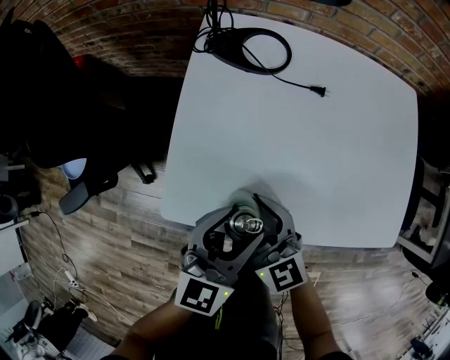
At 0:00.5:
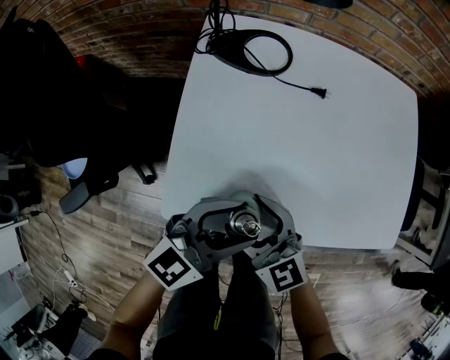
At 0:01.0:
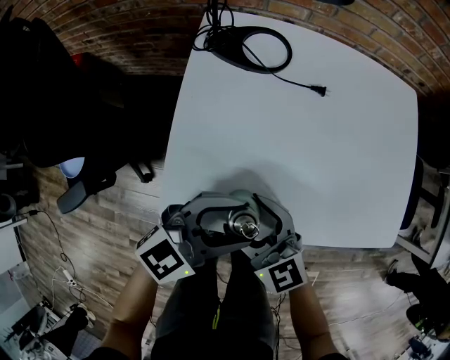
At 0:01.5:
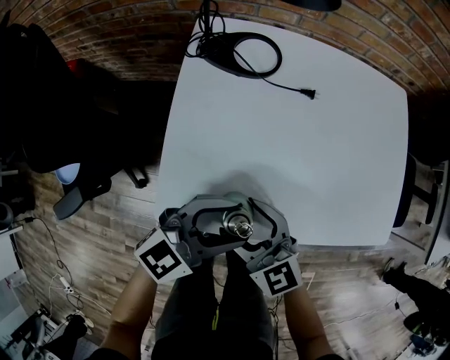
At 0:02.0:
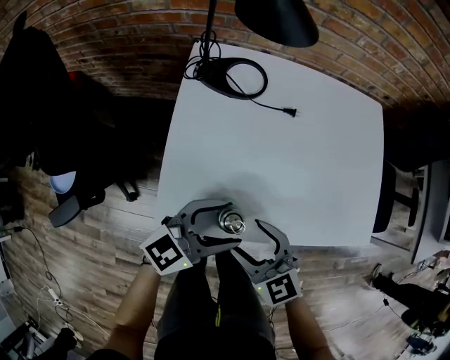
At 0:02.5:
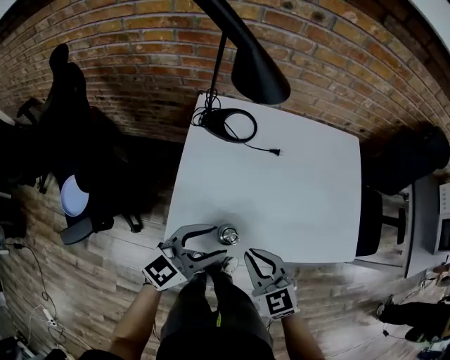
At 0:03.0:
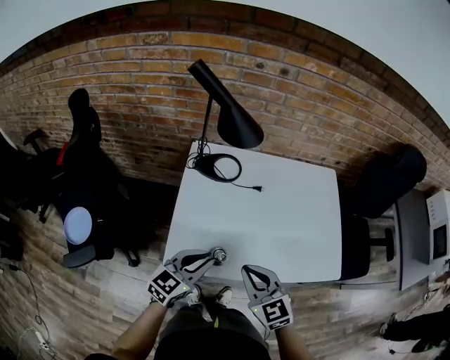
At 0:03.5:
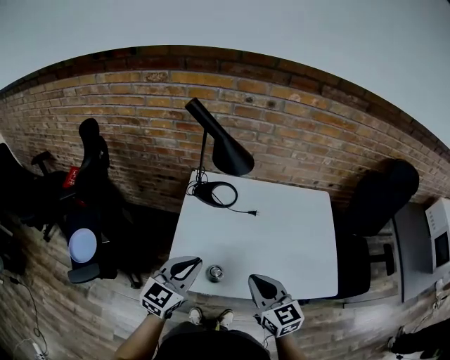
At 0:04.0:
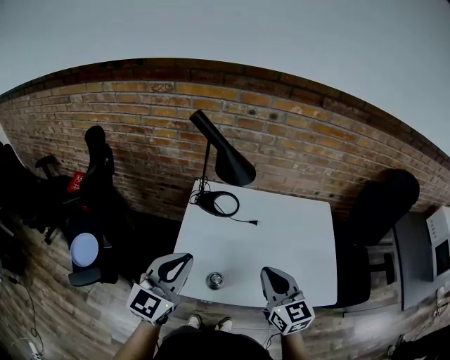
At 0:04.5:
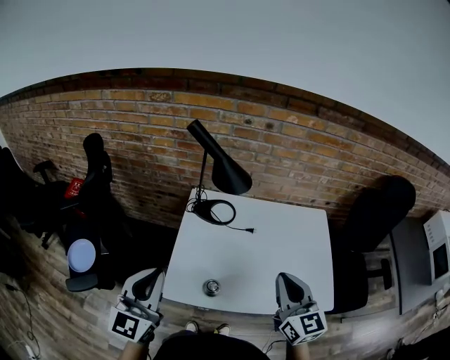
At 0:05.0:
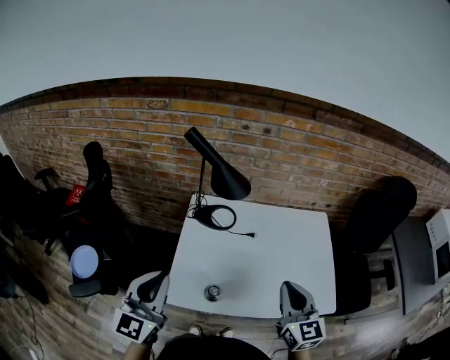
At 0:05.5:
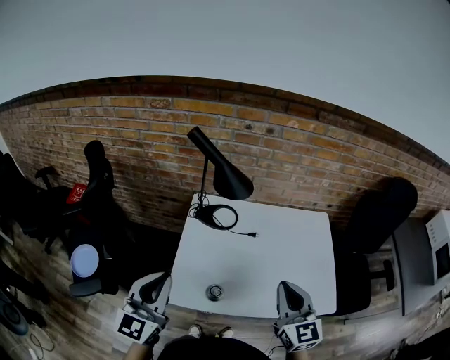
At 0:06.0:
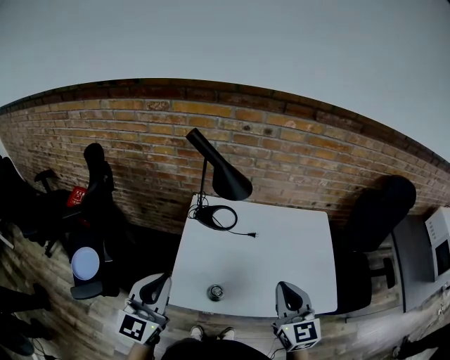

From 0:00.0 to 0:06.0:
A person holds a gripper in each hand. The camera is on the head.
From 0:00.0 to 0:02.0: The left gripper turns by about 40 degrees, while the right gripper shifts by about 5 cm.
From 0:02.0 to 0:04.0: The left gripper shifts about 25 cm upward and to the left, changes its angle by approximately 40 degrees, and closes its fingers, while the right gripper goes roughly 25 cm upward and to the right, turns by roughly 30 degrees, and closes up.
From 0:04.0 to 0:06.0: The right gripper moves about 5 cm. The left gripper ends up approximately 5 cm from where it was.

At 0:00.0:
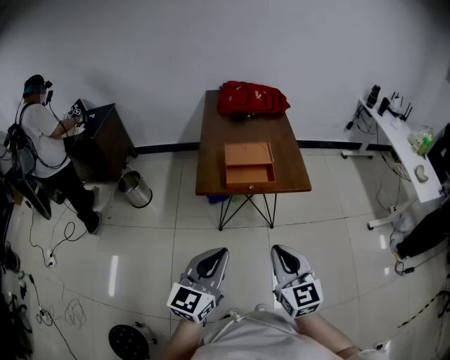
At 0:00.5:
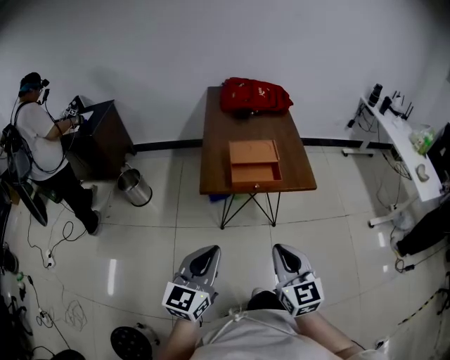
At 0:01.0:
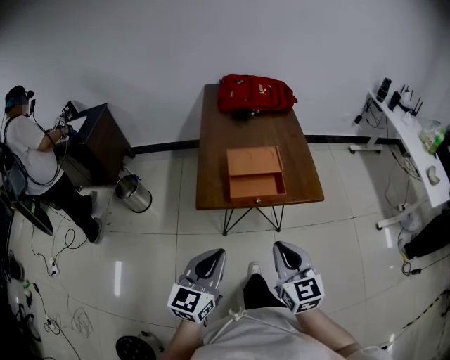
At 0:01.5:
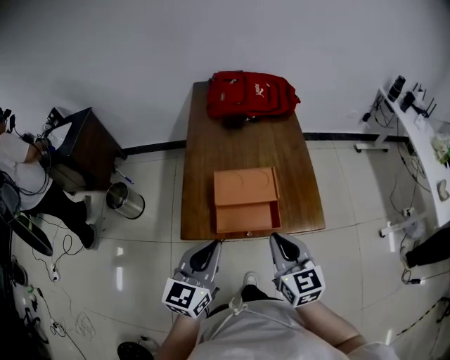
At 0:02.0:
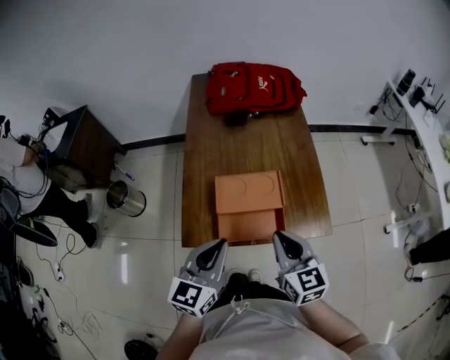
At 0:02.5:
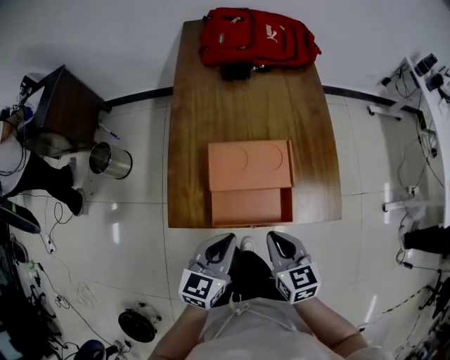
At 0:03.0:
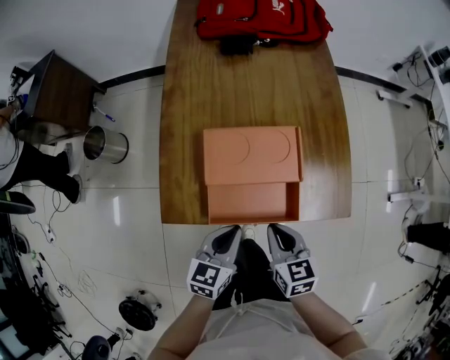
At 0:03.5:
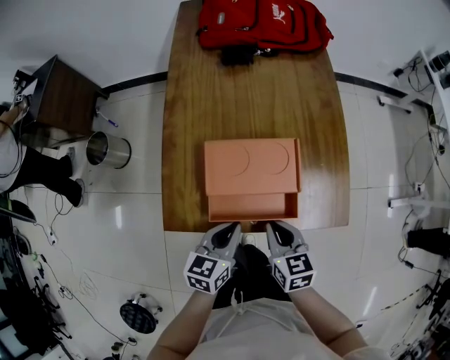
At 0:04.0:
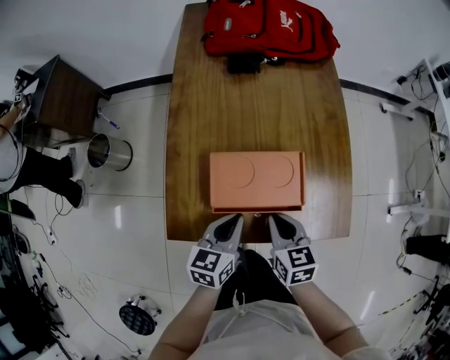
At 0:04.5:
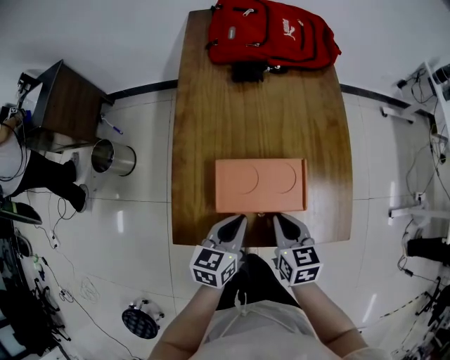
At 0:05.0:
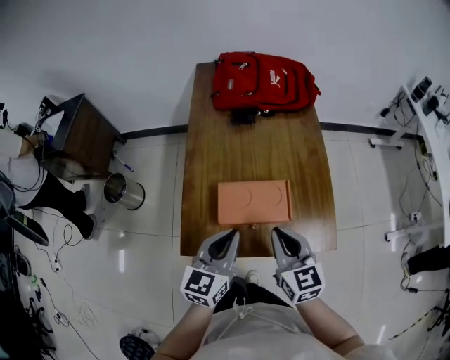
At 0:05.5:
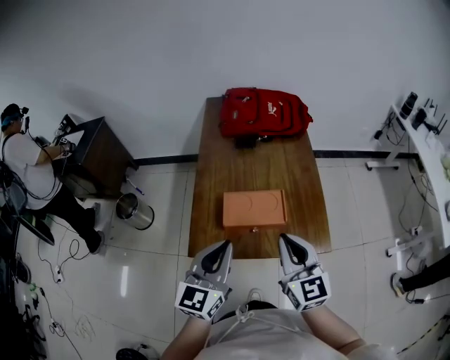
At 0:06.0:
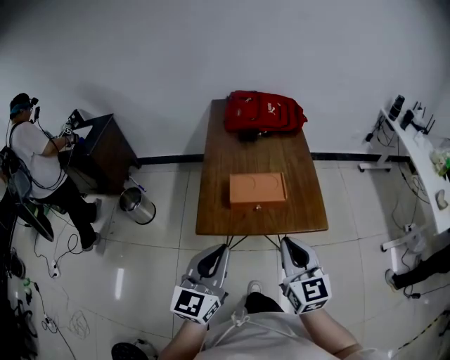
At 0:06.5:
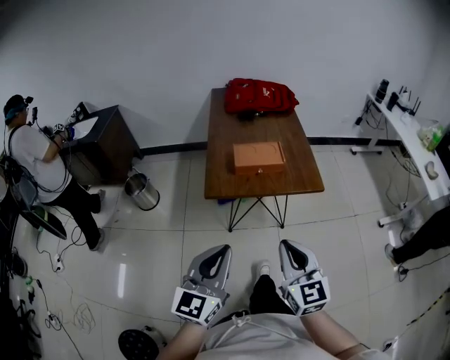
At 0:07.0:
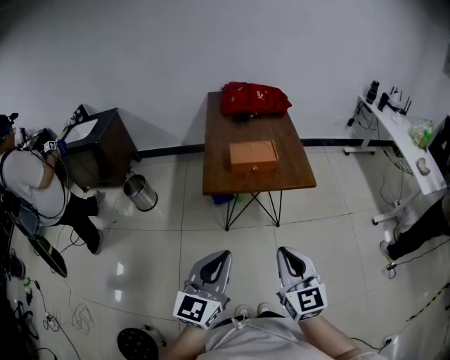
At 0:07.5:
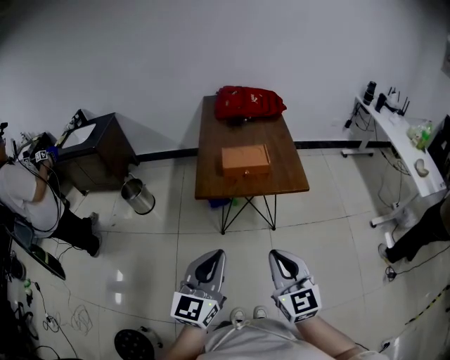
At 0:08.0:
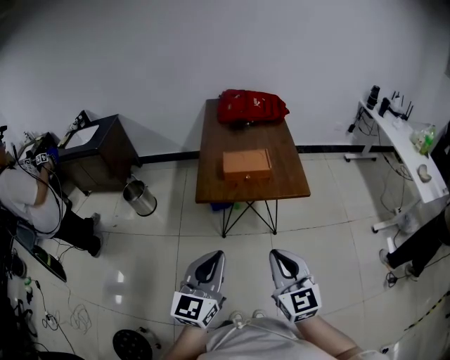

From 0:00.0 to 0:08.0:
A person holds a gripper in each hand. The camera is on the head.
From 0:00.0 to 0:02.0: The two grippers go approximately 35 cm forward.
From 0:02.0 to 0:04.0: Both grippers move downward and forward, roughly 20 cm. The right gripper turns by about 20 degrees. Meanwhile the left gripper swivels approximately 30 degrees.
From 0:04.0 to 0:06.0: Both grippers travel together upward and backward, roughly 35 cm. The left gripper swivels some 40 degrees; the right gripper points its fingers approximately 30 degrees further upward.
From 0:06.0 to 0:08.0: Both grippers move backward, about 25 cm.

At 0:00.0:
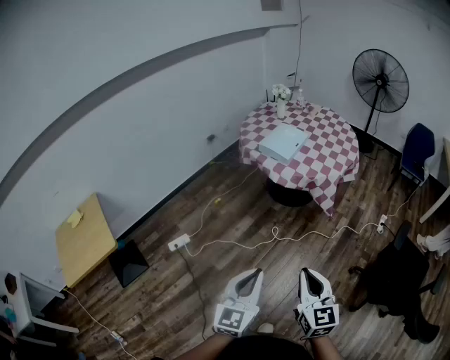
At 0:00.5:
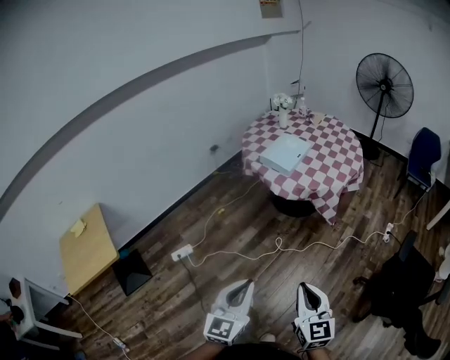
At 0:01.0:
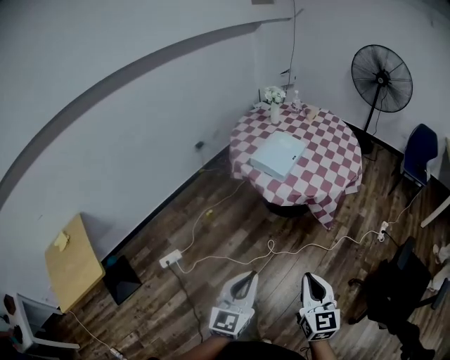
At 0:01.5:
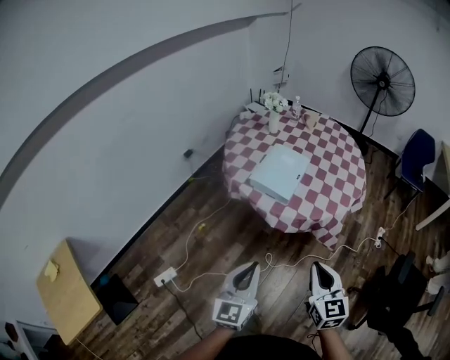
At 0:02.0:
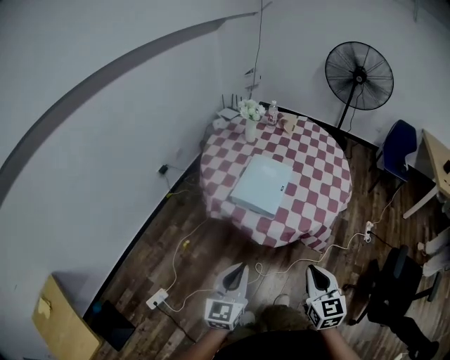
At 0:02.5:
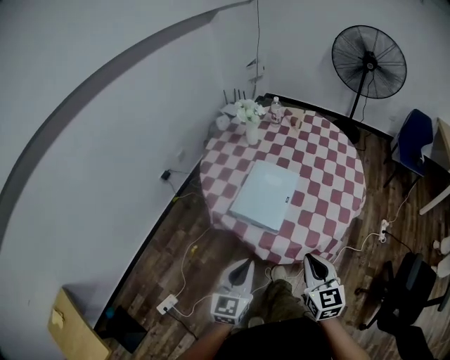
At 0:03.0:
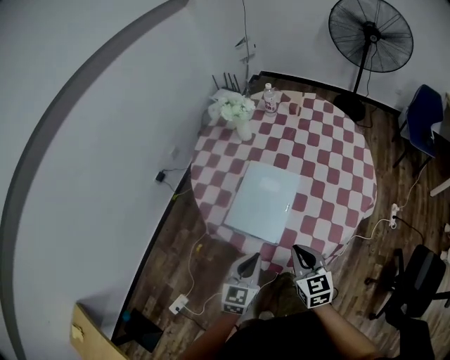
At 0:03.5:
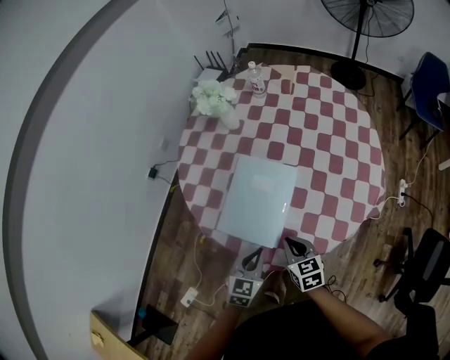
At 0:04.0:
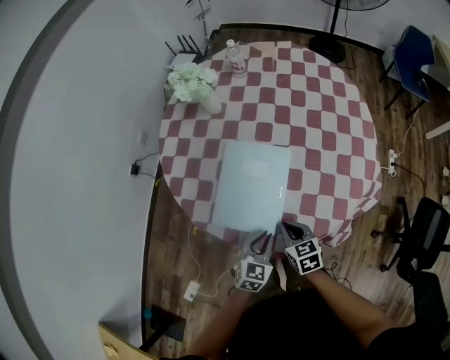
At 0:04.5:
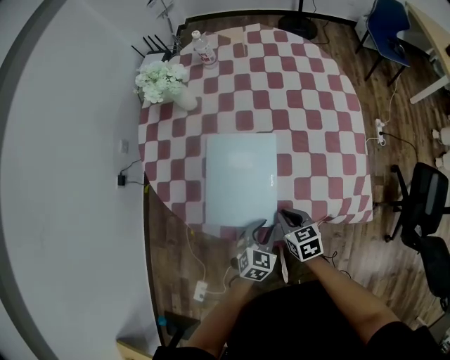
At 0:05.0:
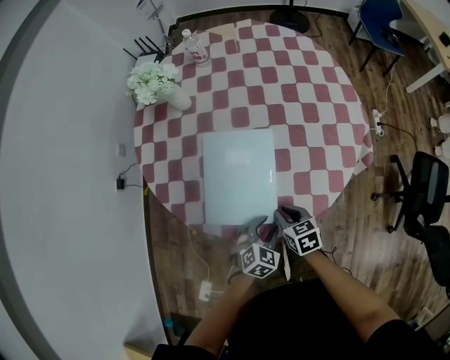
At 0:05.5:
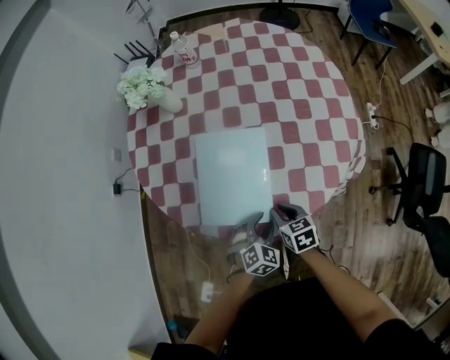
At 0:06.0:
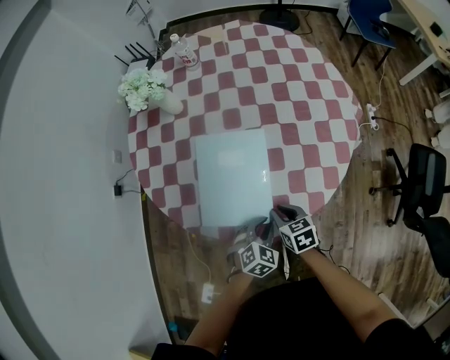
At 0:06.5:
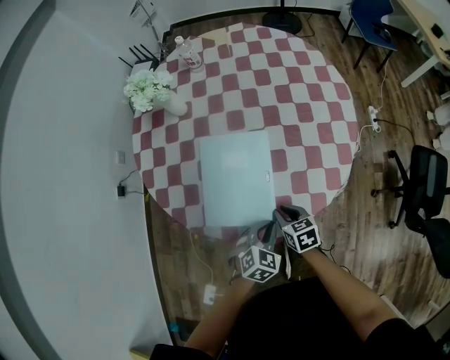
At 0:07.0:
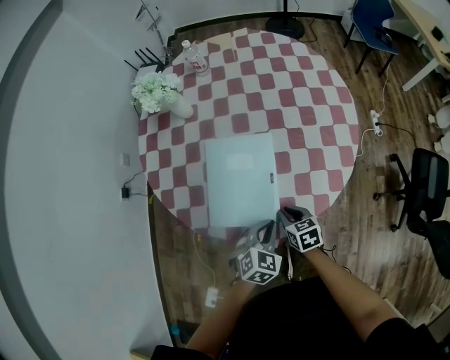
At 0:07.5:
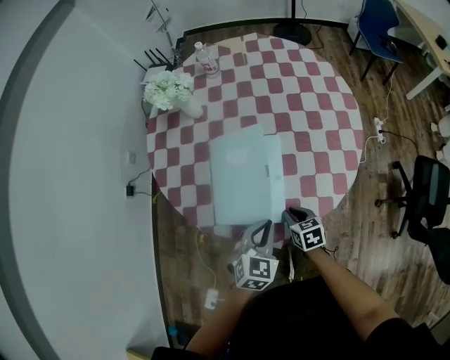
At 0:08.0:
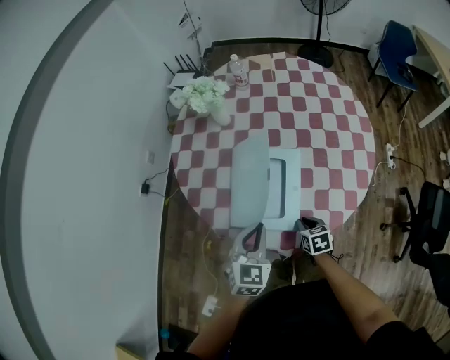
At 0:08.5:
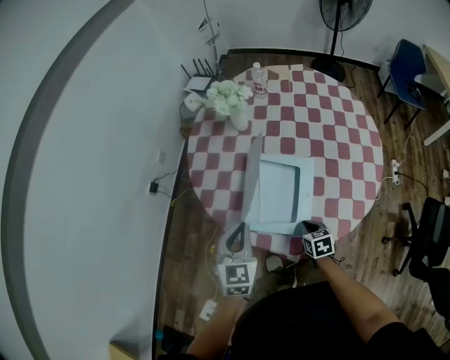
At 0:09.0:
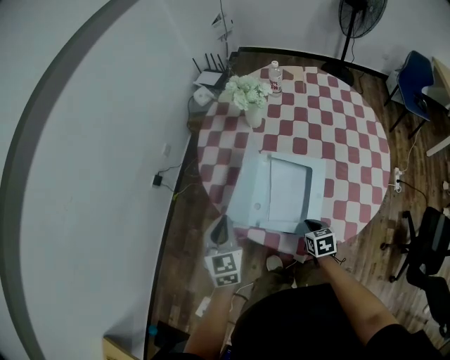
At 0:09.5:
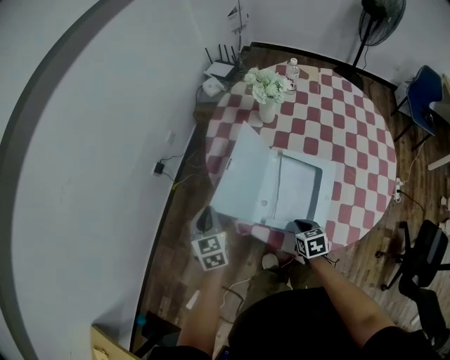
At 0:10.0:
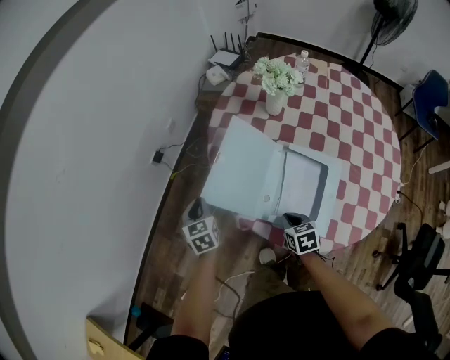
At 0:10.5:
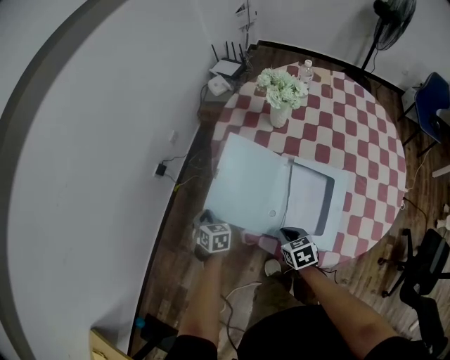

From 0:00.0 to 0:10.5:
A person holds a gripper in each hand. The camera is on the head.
From 0:00.0 to 0:02.0: Both grippers are carried forward, approximately 50 cm.
From 0:02.0 to 0:04.0: Both grippers travel together forward and downward, roughly 50 cm. The right gripper swivels some 30 degrees; the left gripper points its fingers some 30 degrees further downward.
From 0:04.0 to 0:06.5: The left gripper turns by roughly 30 degrees, and opens and closes again.
From 0:06.5 to 0:08.5: The right gripper moves to the left, approximately 5 cm. Meanwhile the left gripper goes approximately 30 cm to the left and upward, and changes its angle by roughly 40 degrees.
From 0:08.5 to 0:10.5: The left gripper moves approximately 35 cm, and swivels about 40 degrees; the right gripper changes place by roughly 20 cm.

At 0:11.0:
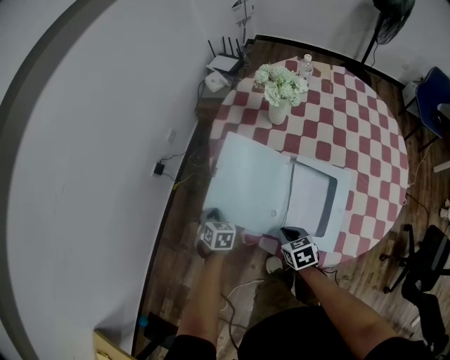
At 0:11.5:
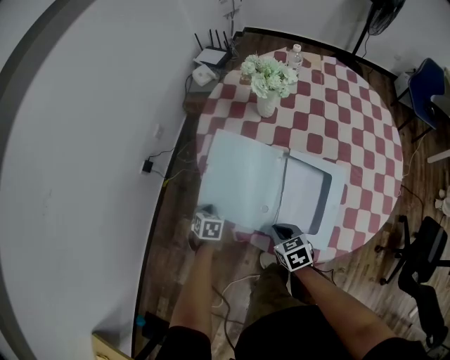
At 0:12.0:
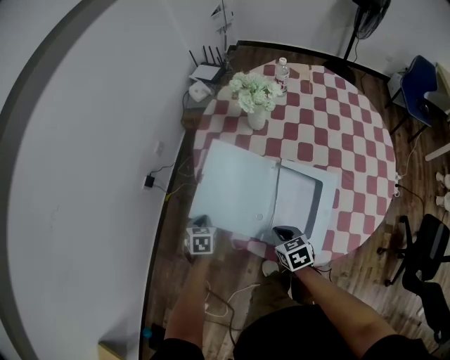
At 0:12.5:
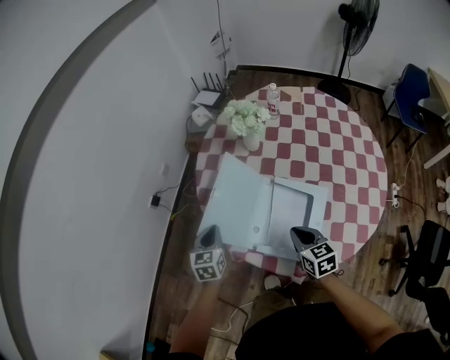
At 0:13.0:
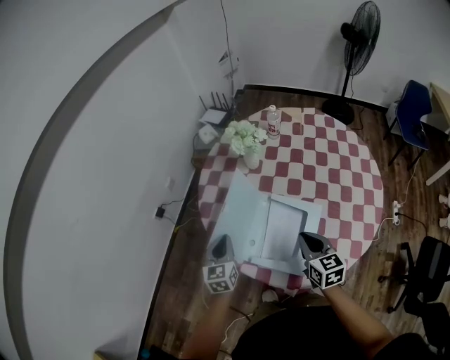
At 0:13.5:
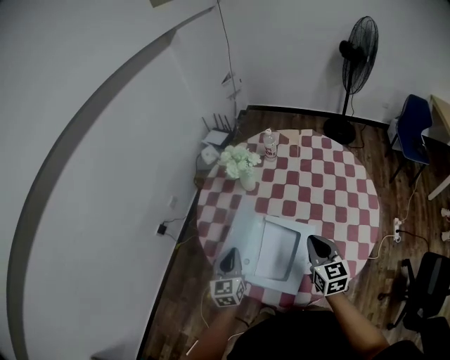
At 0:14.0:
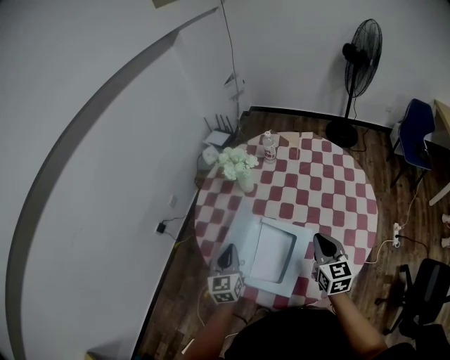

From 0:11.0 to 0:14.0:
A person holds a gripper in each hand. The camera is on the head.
From 0:11.0 to 0:12.5: Both grippers travel together upward and to the right, roughly 20 cm. The left gripper changes its angle by roughly 30 degrees.
From 0:12.5 to 0:14.0: Both grippers move to the right and upward, some 20 cm. The right gripper turns by roughly 20 degrees.
